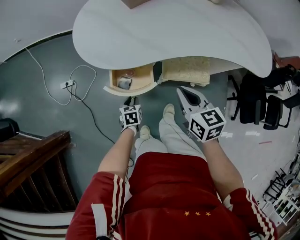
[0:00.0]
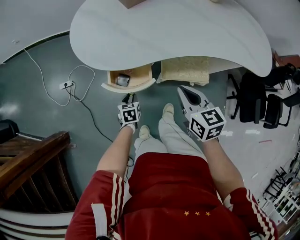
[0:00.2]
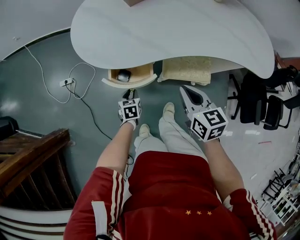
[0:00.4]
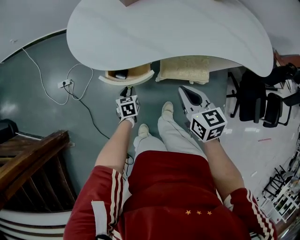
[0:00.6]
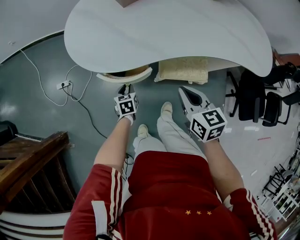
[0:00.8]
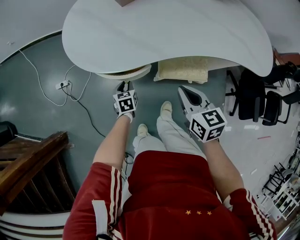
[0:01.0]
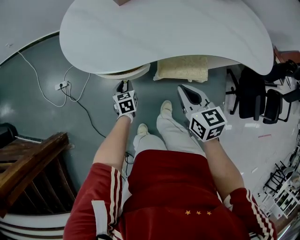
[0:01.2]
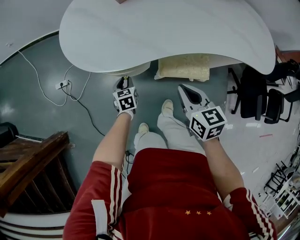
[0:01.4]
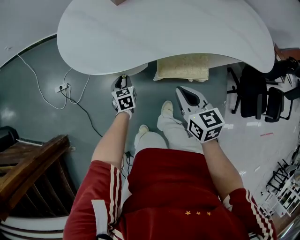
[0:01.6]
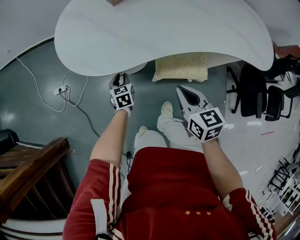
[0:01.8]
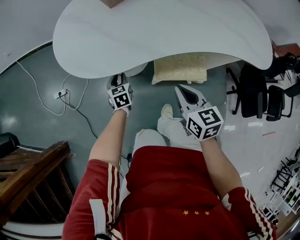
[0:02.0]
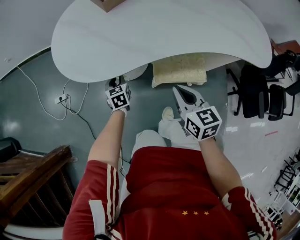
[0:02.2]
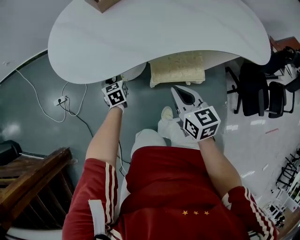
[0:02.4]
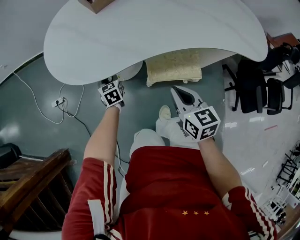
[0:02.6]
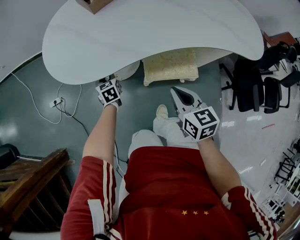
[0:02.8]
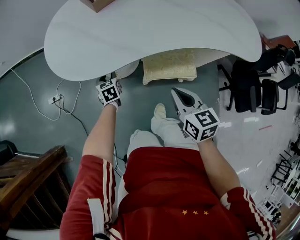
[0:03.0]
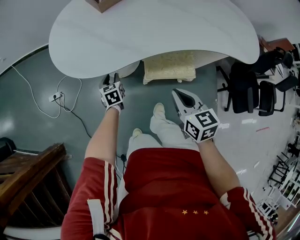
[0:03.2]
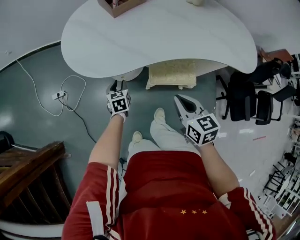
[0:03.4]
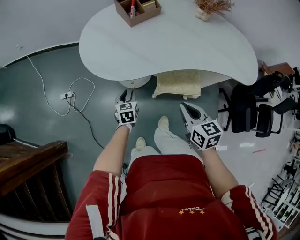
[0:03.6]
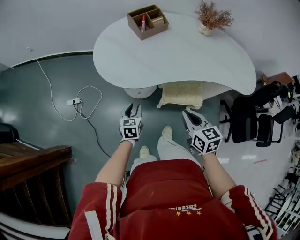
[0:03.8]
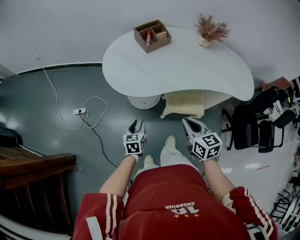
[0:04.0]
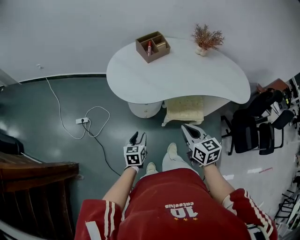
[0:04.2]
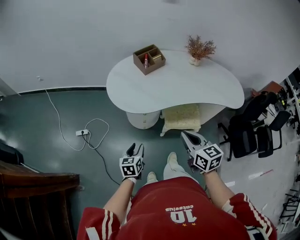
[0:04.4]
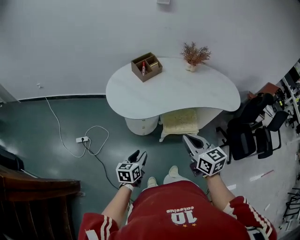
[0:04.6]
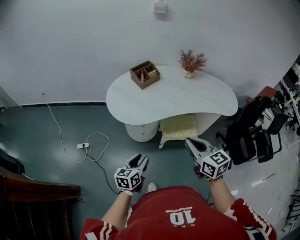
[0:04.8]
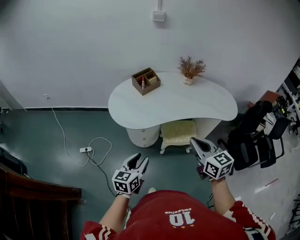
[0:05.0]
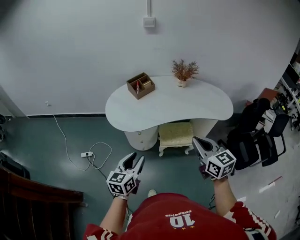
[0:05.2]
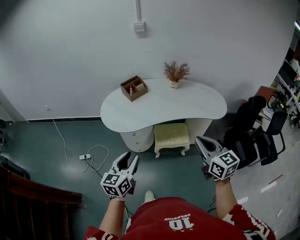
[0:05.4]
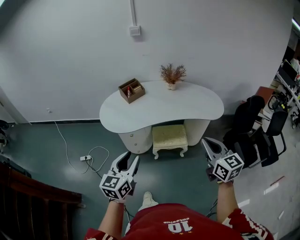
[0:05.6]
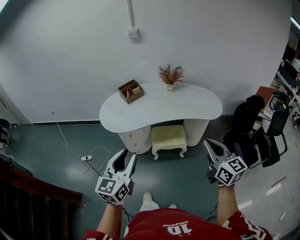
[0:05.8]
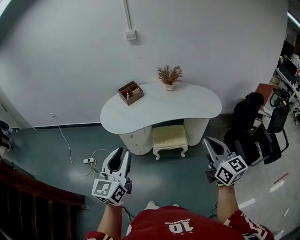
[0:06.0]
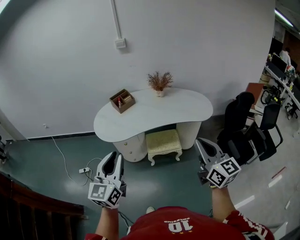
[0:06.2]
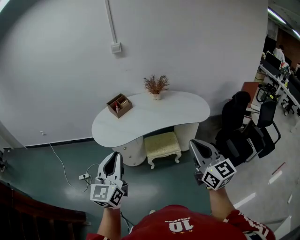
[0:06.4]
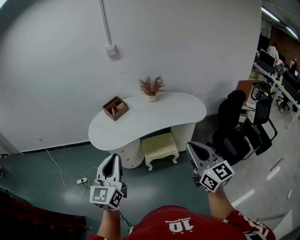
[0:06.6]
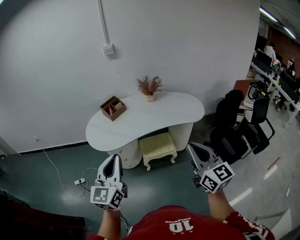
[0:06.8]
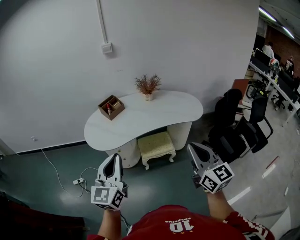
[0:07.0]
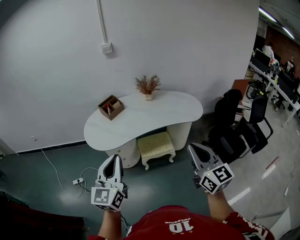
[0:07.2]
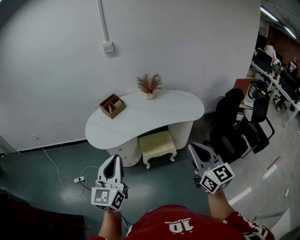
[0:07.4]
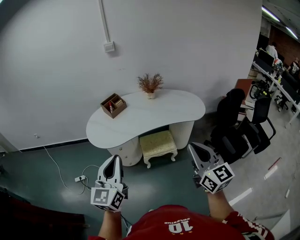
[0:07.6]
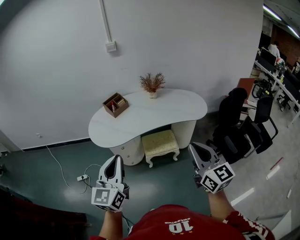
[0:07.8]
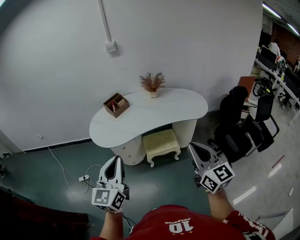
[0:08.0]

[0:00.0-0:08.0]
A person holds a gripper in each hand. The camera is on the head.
0:00.0 to 0:01.6: The right gripper moves approximately 5 cm; the left gripper heads forward, covering roughly 10 cm.
0:01.6 to 0:03.2: The right gripper shifts by some 5 cm.
0:03.2 to 0:04.8: The two grippers go approximately 35 cm upward and backward. The left gripper rotates some 30 degrees.
0:04.8 to 0:06.4: The left gripper moves upward, about 30 cm, changes its angle by some 40 degrees, and closes, while the right gripper travels to the right, upward and backward by roughly 30 cm, and changes its angle by about 30 degrees.
0:06.4 to 0:08.0: The grippers move only a little.

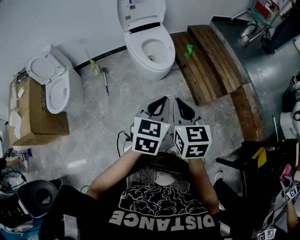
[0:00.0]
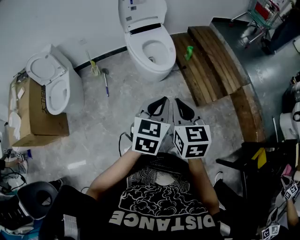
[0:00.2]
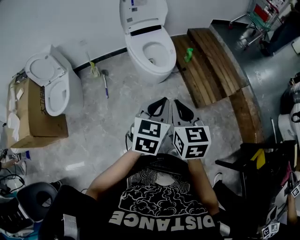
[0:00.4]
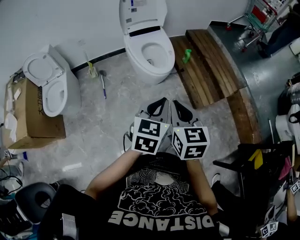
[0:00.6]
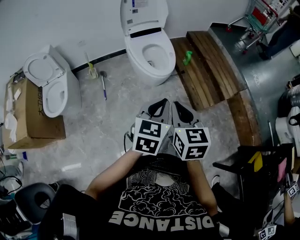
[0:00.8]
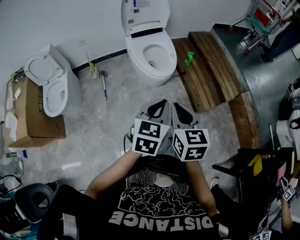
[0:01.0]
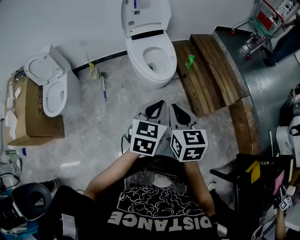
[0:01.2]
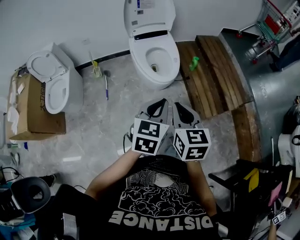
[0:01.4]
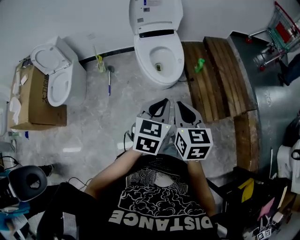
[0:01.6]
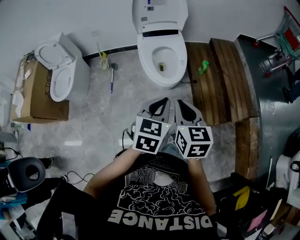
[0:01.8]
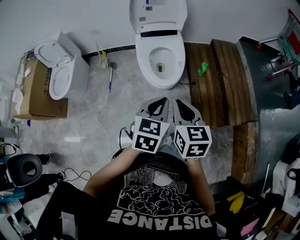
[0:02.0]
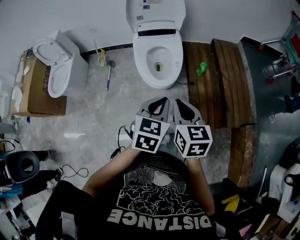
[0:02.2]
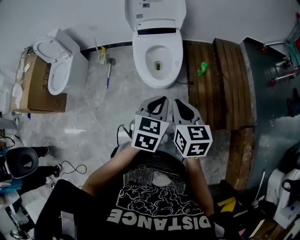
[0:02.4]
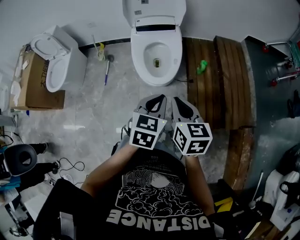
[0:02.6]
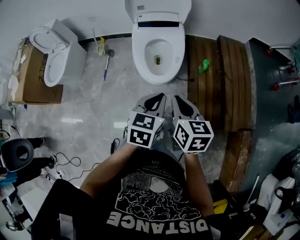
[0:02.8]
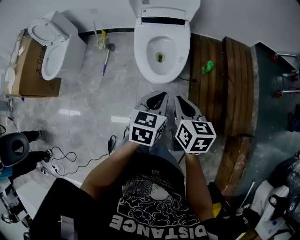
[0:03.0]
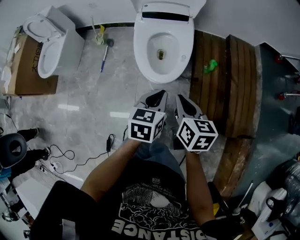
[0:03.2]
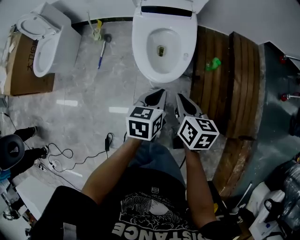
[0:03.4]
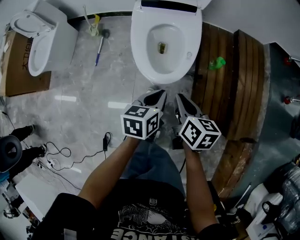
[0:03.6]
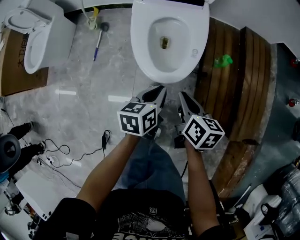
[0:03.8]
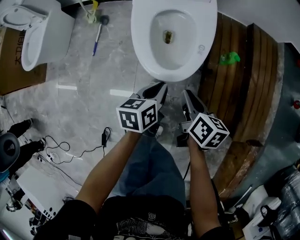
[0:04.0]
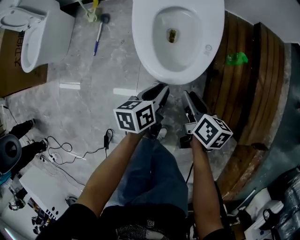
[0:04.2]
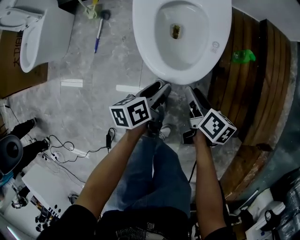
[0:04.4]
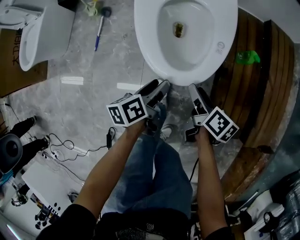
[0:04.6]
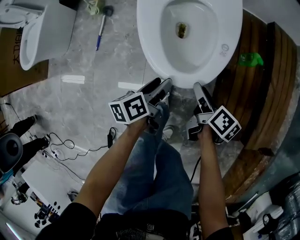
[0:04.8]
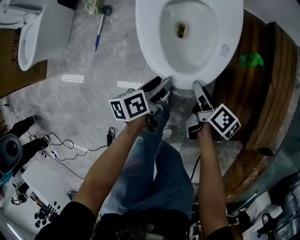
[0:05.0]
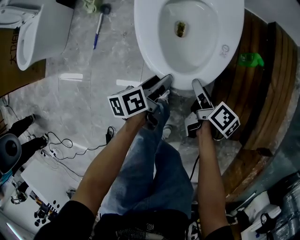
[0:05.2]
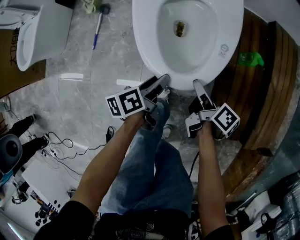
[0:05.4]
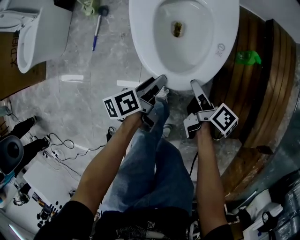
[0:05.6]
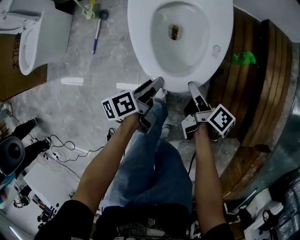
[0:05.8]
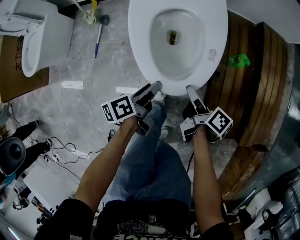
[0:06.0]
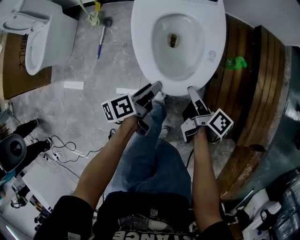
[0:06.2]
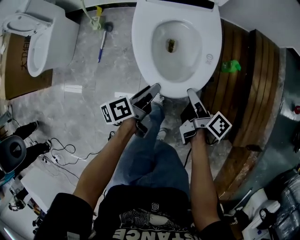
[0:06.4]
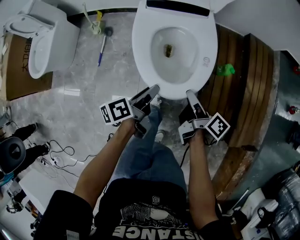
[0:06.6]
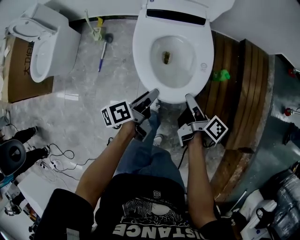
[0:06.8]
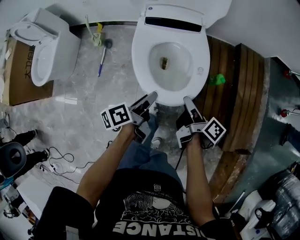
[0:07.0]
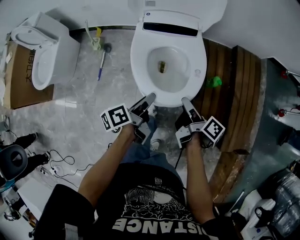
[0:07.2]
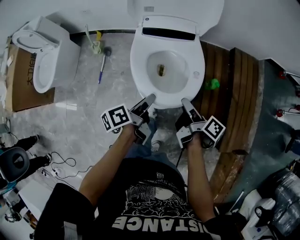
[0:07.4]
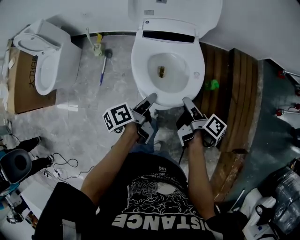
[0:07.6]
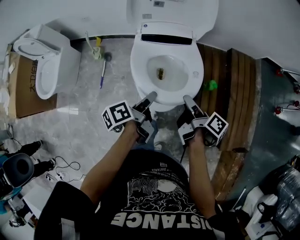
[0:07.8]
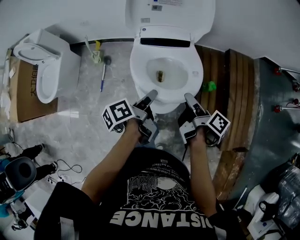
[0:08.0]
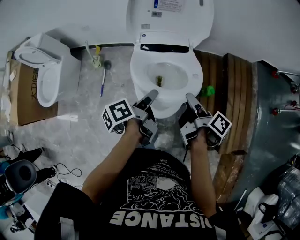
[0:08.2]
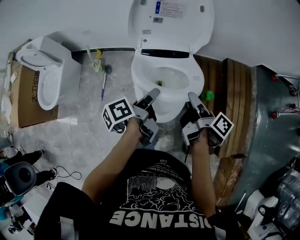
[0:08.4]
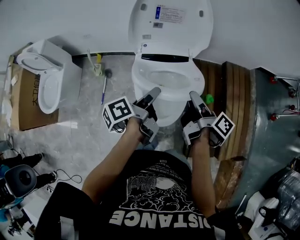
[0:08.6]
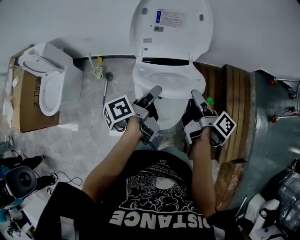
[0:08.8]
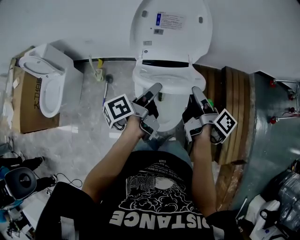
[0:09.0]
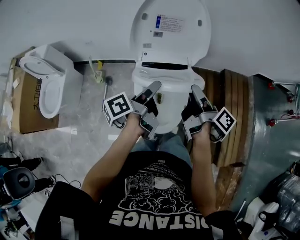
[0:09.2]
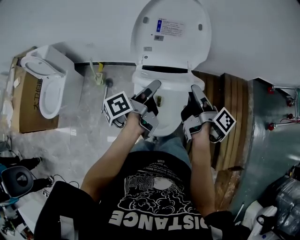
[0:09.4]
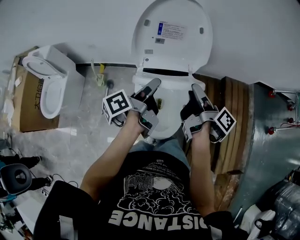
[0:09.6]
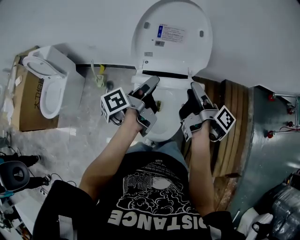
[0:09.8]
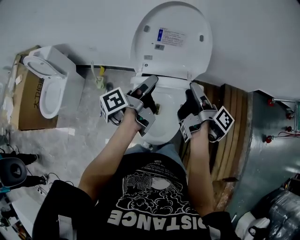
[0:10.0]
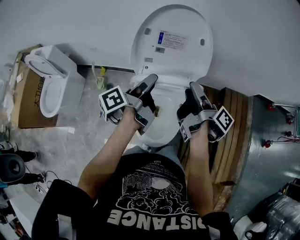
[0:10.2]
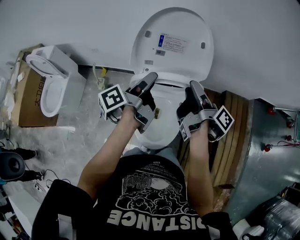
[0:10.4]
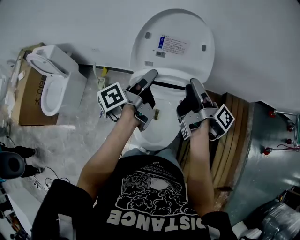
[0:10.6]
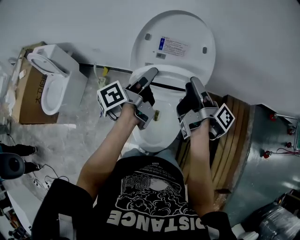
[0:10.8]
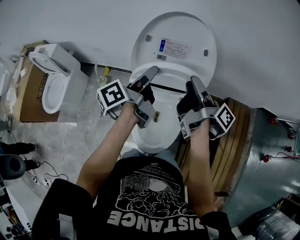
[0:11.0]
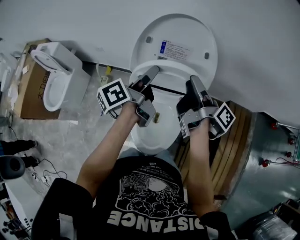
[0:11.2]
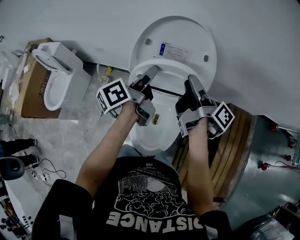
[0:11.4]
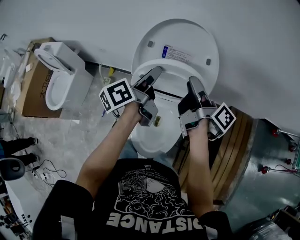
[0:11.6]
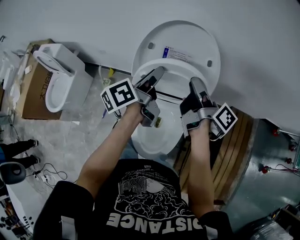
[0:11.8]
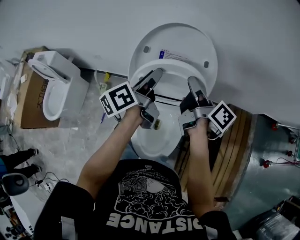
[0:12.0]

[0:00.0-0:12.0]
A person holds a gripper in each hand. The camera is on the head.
0:00.0 to 0:01.6: The two grippers go approximately 15 cm forward.
0:01.6 to 0:03.0: Both grippers move forward, to the right and downward, about 25 cm.
0:03.0 to 0:04.4: Both grippers move downward, approximately 30 cm. The right gripper changes its angle by roughly 30 degrees, and opens its fingers, while the left gripper rotates around the line of its fingers by some 50 degrees, counterclockwise from behind, and opens up.
0:04.4 to 0:06.0: The right gripper swivels roughly 20 degrees.
0:06.0 to 0:07.6: The two grippers go approximately 20 cm upward.
0:07.6 to 0:09.0: Both grippers travel together upward and forward, roughly 20 cm.
0:09.0 to 0:10.4: Both grippers move forward, some 10 cm.
0:10.4 to 0:12.0: Both grippers travel together forward, some 15 cm. The left gripper changes its angle by some 20 degrees; the right gripper swivels some 20 degrees, and closes.

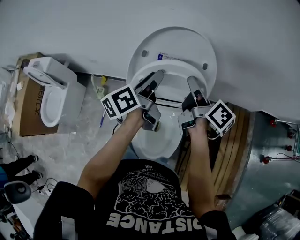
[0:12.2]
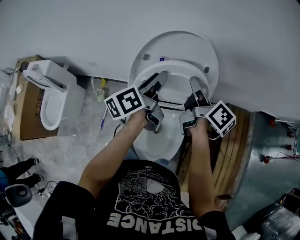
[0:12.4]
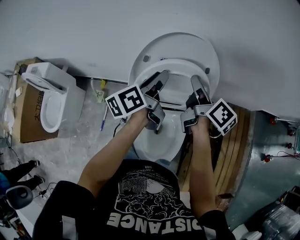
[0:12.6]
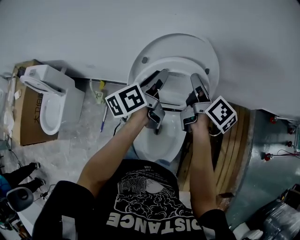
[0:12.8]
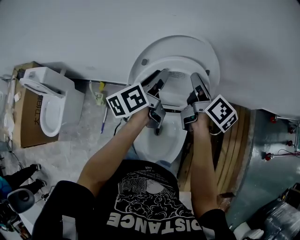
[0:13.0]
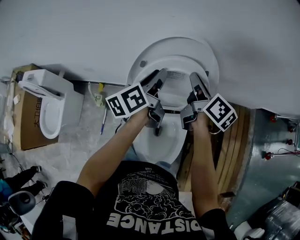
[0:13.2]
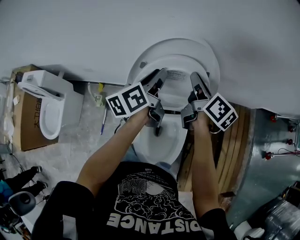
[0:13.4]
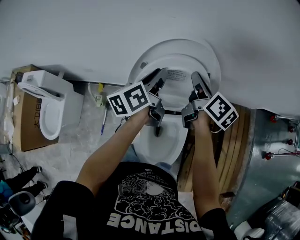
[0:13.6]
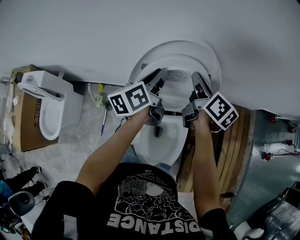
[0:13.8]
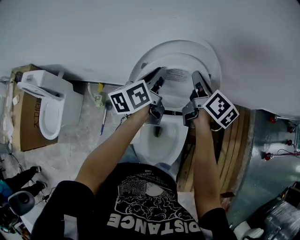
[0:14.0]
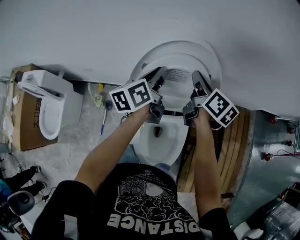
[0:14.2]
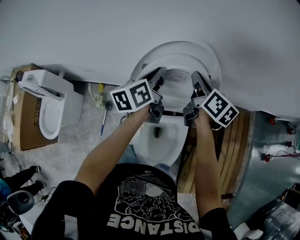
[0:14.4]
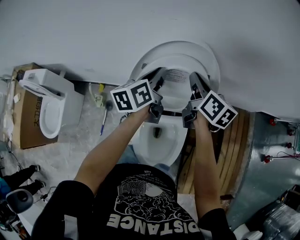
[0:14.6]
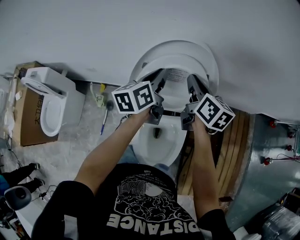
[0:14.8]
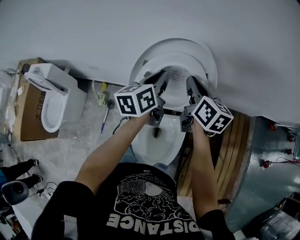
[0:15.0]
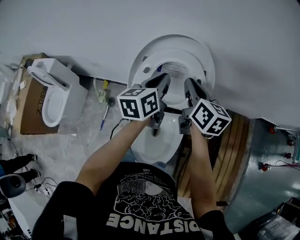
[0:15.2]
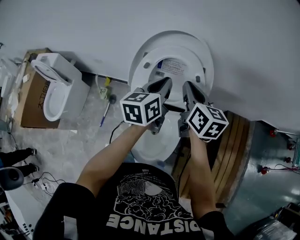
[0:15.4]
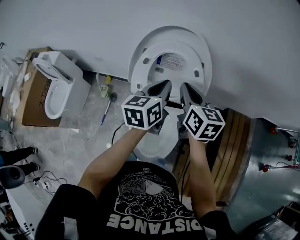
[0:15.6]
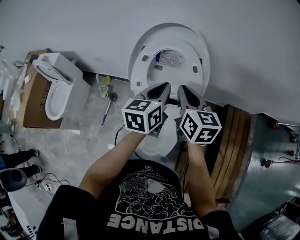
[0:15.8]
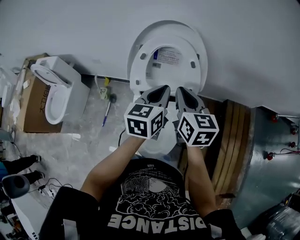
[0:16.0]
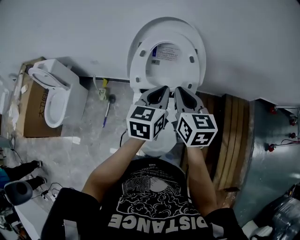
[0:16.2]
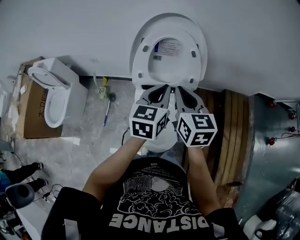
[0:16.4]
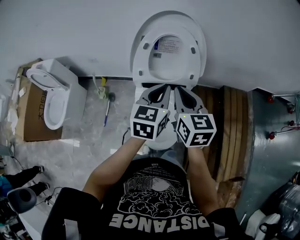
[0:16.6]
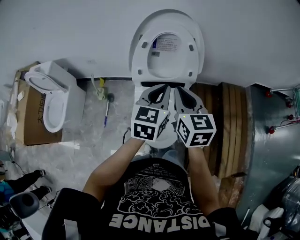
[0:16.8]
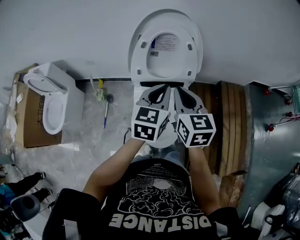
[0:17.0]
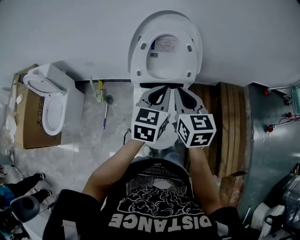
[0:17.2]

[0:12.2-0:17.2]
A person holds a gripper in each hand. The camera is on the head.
0:12.2 to 0:13.8: The two grippers go approximately 10 cm forward.
0:13.8 to 0:15.6: The left gripper heads backward and to the right, covering roughly 15 cm, and turns by roughly 20 degrees. Meanwhile the right gripper moves backward, about 15 cm, and turns by some 30 degrees.
0:15.6 to 0:17.2: The two grippers go approximately 15 cm backward. The left gripper changes its angle by roughly 20 degrees.
